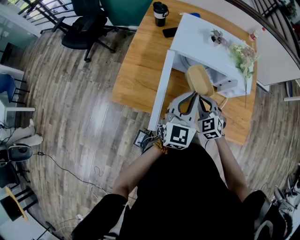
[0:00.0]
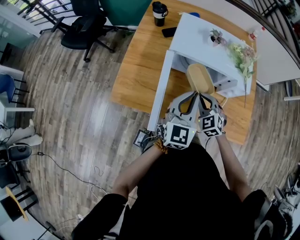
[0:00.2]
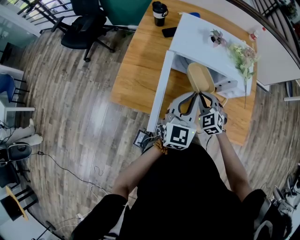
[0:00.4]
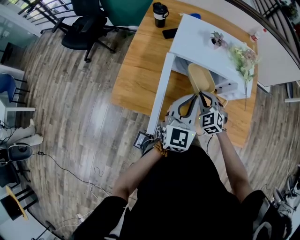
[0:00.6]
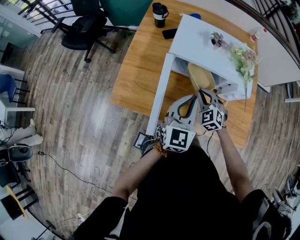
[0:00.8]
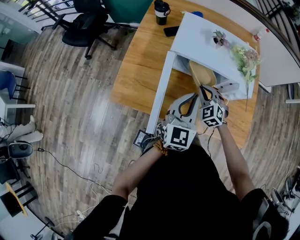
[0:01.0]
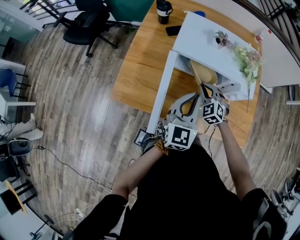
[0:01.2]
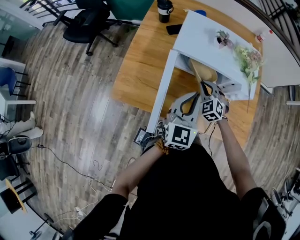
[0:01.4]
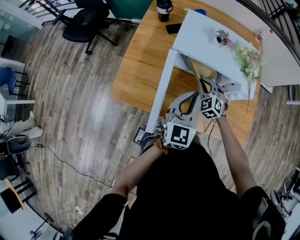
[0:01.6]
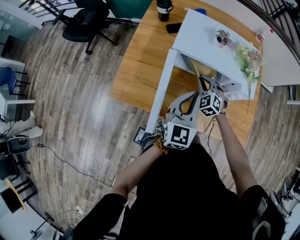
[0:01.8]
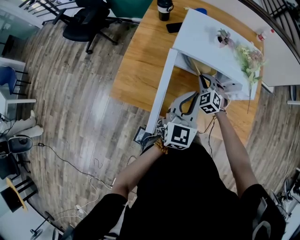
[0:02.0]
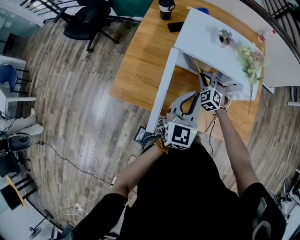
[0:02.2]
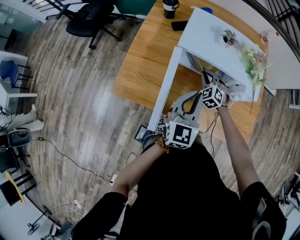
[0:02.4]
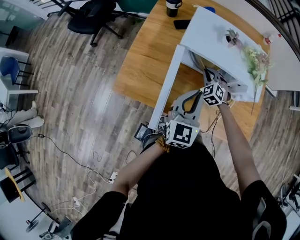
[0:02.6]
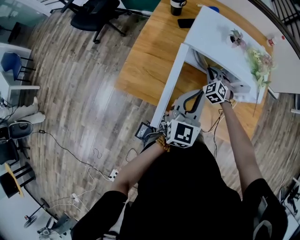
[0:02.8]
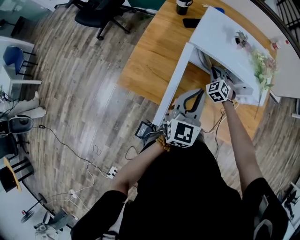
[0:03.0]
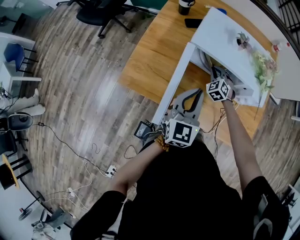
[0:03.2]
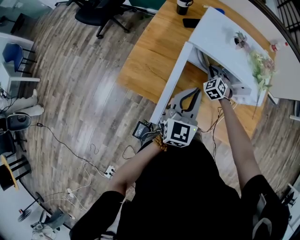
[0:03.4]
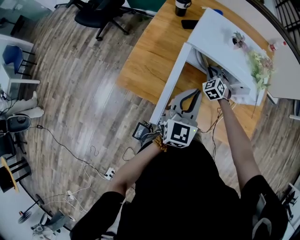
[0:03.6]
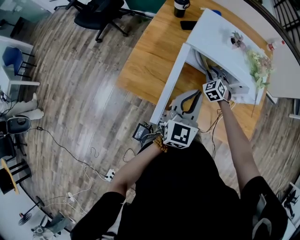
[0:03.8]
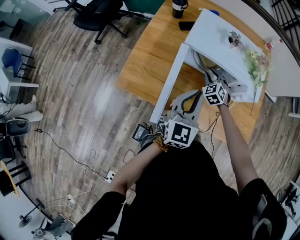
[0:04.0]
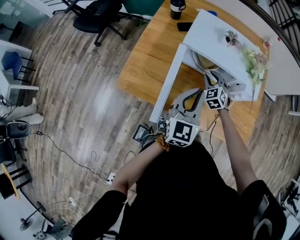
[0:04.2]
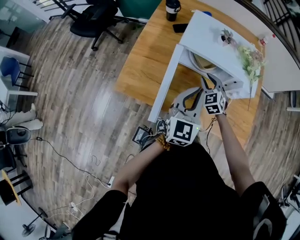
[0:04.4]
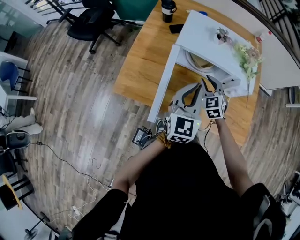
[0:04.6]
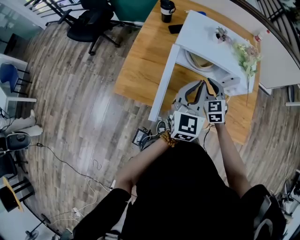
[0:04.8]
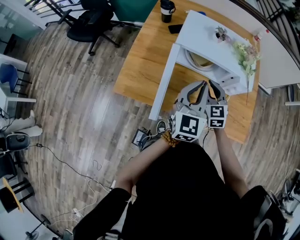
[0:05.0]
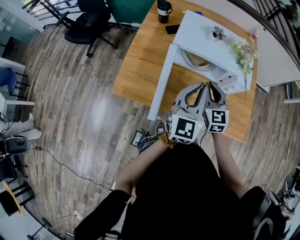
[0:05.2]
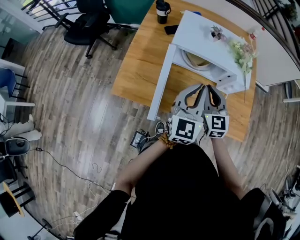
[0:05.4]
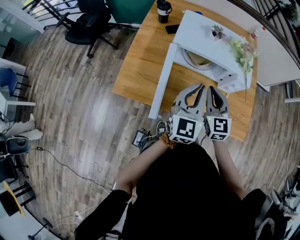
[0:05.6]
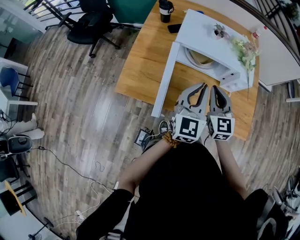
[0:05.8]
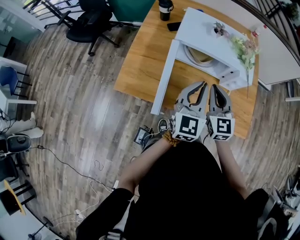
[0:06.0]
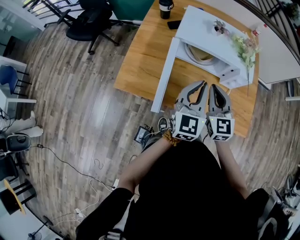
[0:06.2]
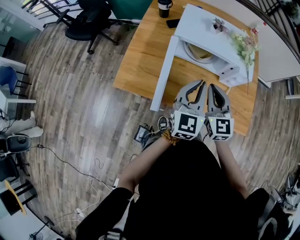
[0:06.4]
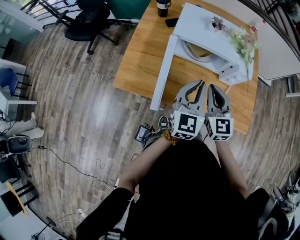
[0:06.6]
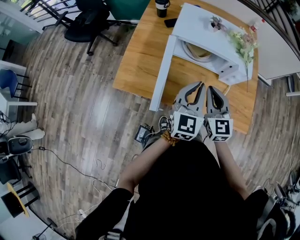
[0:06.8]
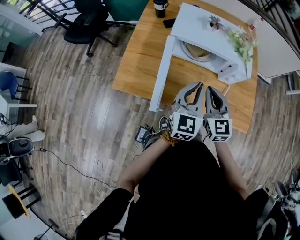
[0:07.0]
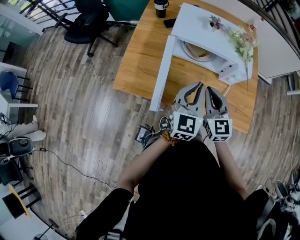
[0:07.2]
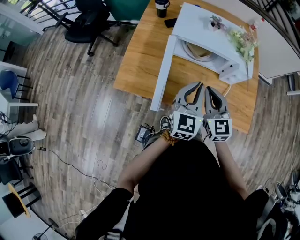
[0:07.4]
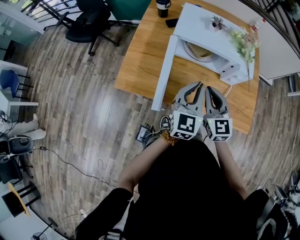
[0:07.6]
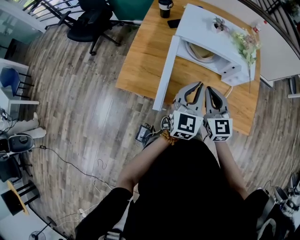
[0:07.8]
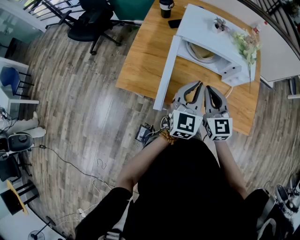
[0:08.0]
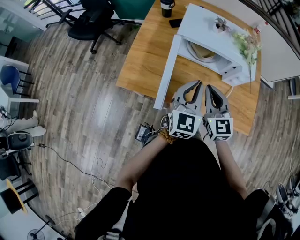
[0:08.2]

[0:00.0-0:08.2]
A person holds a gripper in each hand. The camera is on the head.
0:00.0 to 0:01.6: The right gripper moves forward, about 10 cm.
0:01.6 to 0:03.2: The right gripper moves forward and downward, roughly 10 cm.
0:03.2 to 0:05.0: The right gripper heads upward and backward, covering approximately 20 cm, and swivels roughly 30 degrees, while the left gripper travels upward by about 5 cm.
0:05.0 to 0:06.6: The right gripper is displaced backward and upward by about 10 cm.
0:06.6 to 0:08.2: There are only small adjustments of the grippers.

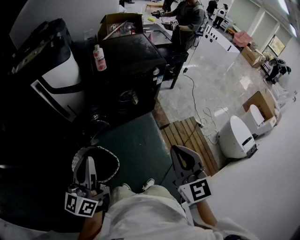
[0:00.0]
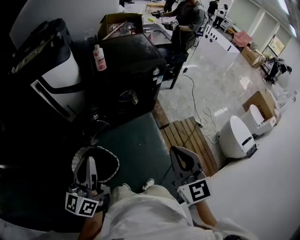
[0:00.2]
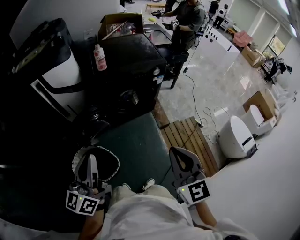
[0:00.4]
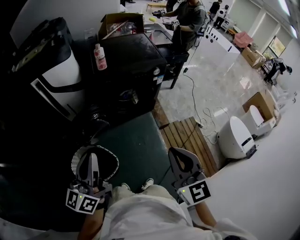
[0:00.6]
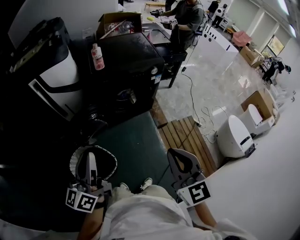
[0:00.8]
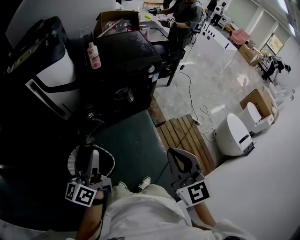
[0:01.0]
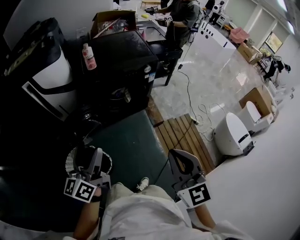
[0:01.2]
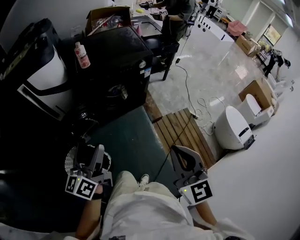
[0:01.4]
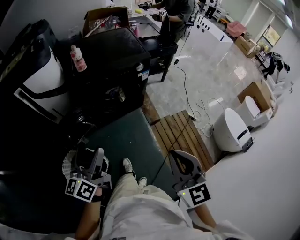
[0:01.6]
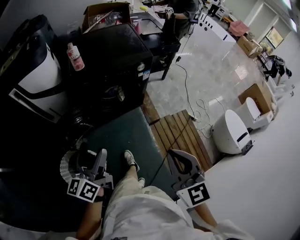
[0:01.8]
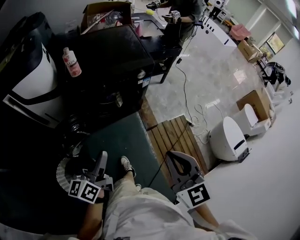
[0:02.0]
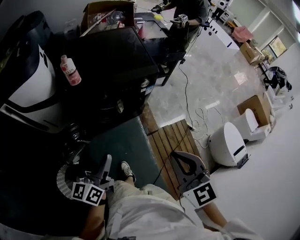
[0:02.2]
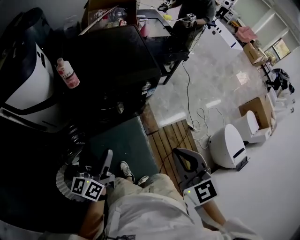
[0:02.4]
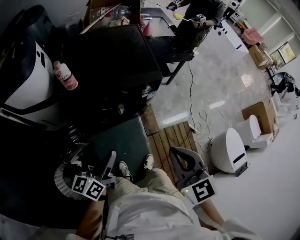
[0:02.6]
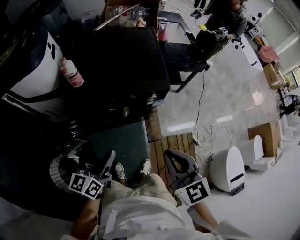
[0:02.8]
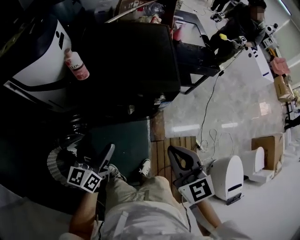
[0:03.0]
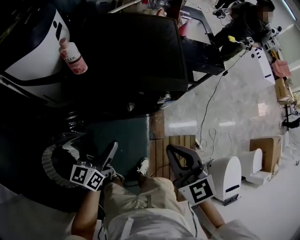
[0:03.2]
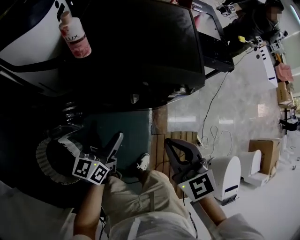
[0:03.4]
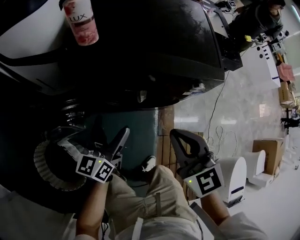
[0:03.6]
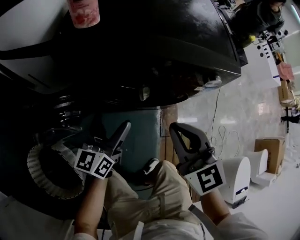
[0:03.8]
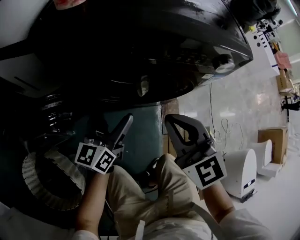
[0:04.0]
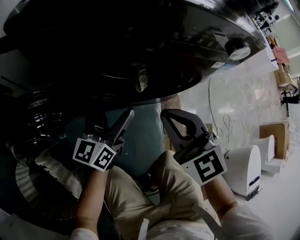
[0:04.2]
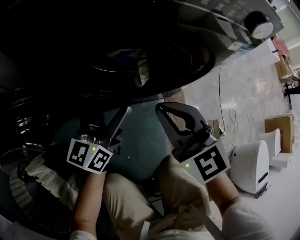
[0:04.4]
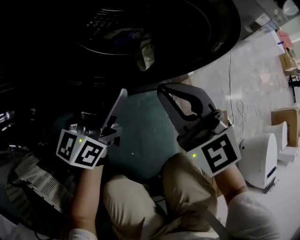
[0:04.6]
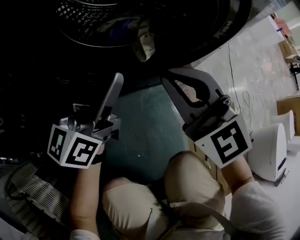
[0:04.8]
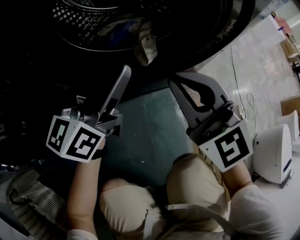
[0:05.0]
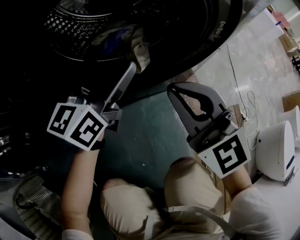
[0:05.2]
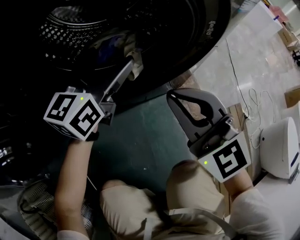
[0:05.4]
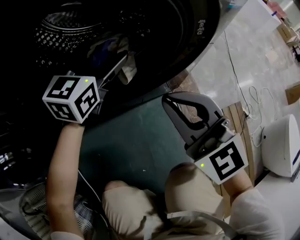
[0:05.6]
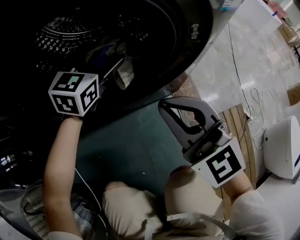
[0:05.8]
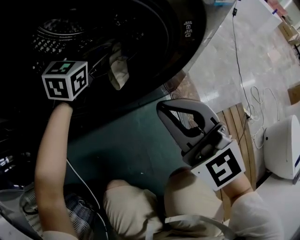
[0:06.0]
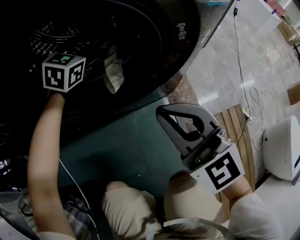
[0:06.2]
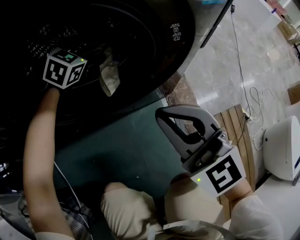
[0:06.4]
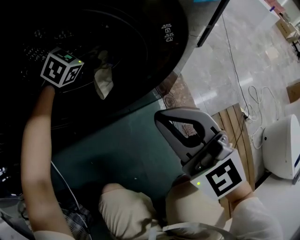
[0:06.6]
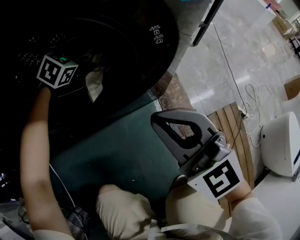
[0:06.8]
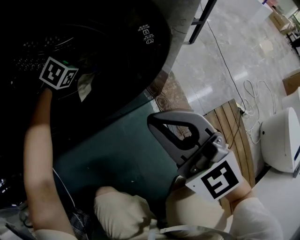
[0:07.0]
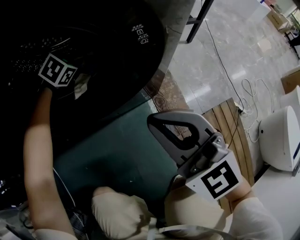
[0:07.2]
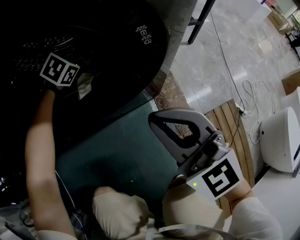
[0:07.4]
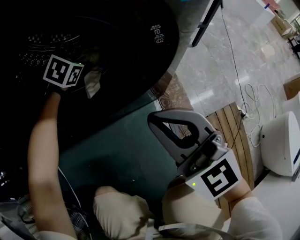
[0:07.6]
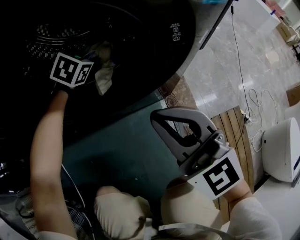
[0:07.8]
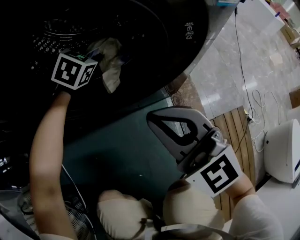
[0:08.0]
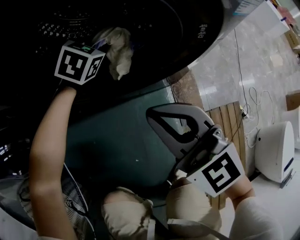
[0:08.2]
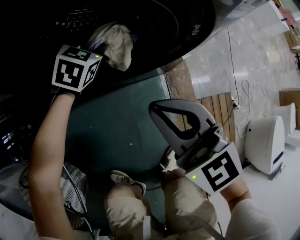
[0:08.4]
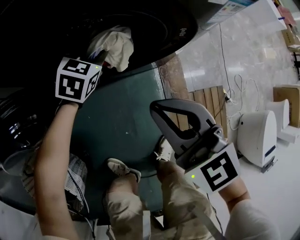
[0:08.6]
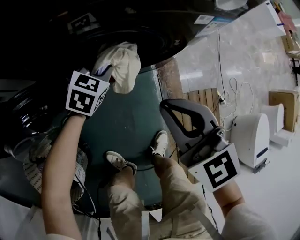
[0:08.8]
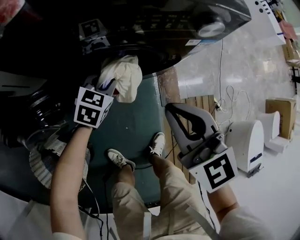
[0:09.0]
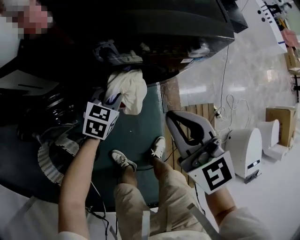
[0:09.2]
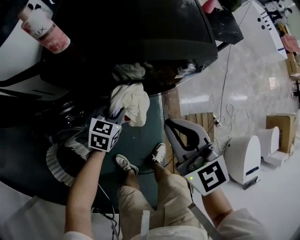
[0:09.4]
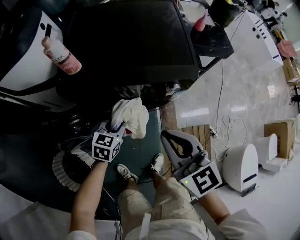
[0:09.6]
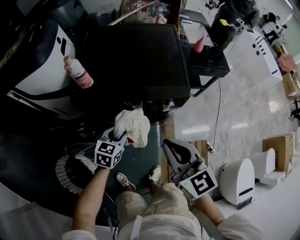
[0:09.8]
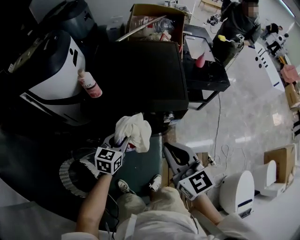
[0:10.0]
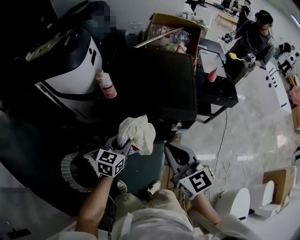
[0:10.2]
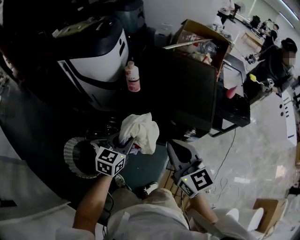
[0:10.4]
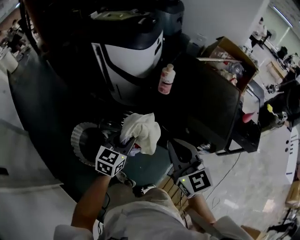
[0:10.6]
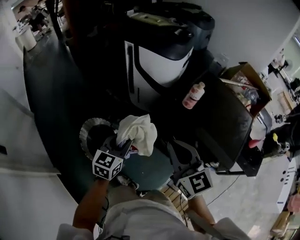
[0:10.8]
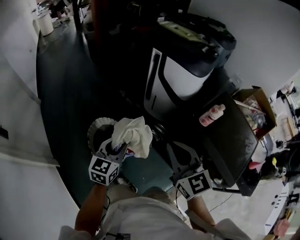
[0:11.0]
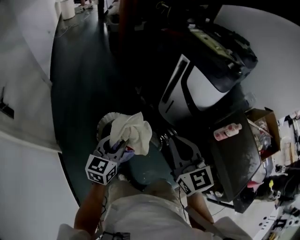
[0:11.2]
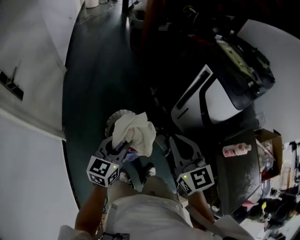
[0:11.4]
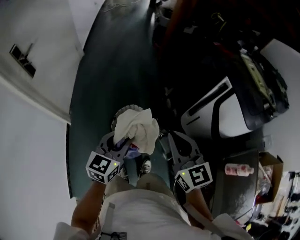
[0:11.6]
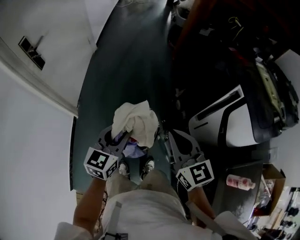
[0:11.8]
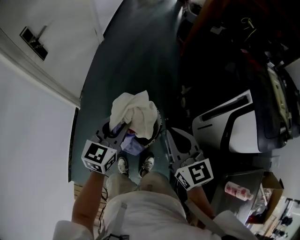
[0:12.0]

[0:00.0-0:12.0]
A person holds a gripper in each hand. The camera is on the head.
0:00.0 to 0:01.6: The left gripper shifts some 15 cm to the right, forward and downward, and opens up. The right gripper is displaced to the right by some 10 cm.
0:01.6 to 0:03.0: The two grippers go about 35 cm forward. The right gripper swivels roughly 30 degrees.
0:03.0 to 0:04.4: Both grippers travel together downward, roughly 40 cm.
0:04.4 to 0:06.0: The left gripper moves forward, to the right and downward, approximately 25 cm, and rotates about 50 degrees; the right gripper heads downward and to the right, covering some 15 cm.
0:06.0 to 0:07.6: The left gripper goes some 10 cm downward, tips its fingers downward by approximately 30 degrees, and closes.
0:07.6 to 0:09.0: The right gripper heads upward, covering some 25 cm. Meanwhile the left gripper heads backward and upward, covering approximately 30 cm, and changes its angle by roughly 20 degrees.
0:09.0 to 0:10.4: Both grippers move upward, about 40 cm. The right gripper turns by some 20 degrees. Meanwhile the left gripper changes its angle by approximately 40 degrees.
0:10.4 to 0:12.0: The pair of grippers is taken roughly 60 cm. The left gripper turns by roughly 80 degrees. Meanwhile the right gripper changes its angle by approximately 80 degrees.

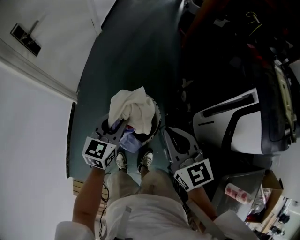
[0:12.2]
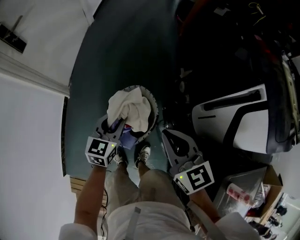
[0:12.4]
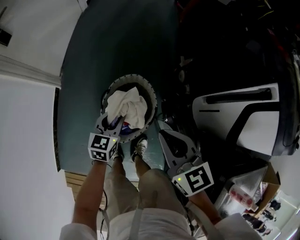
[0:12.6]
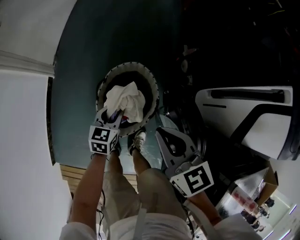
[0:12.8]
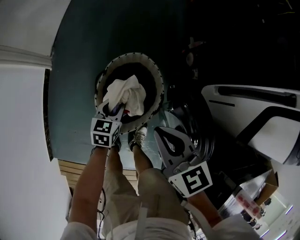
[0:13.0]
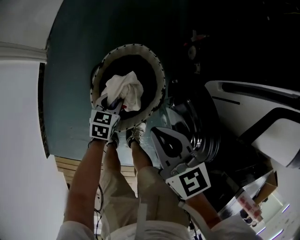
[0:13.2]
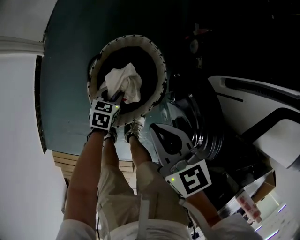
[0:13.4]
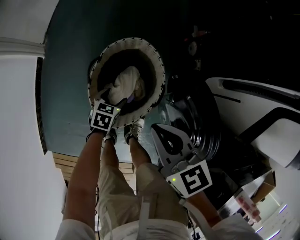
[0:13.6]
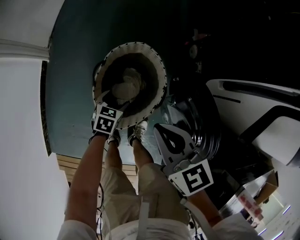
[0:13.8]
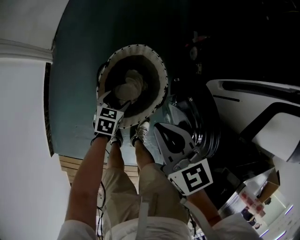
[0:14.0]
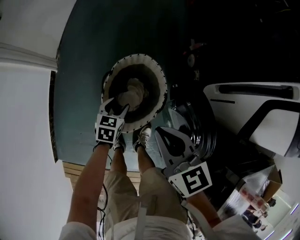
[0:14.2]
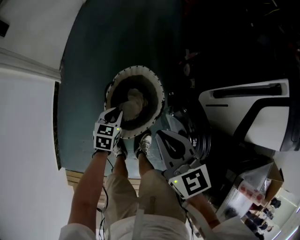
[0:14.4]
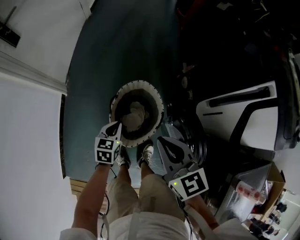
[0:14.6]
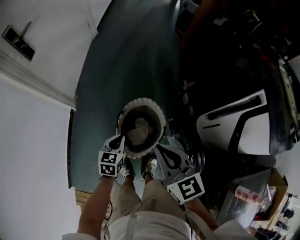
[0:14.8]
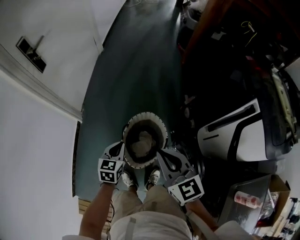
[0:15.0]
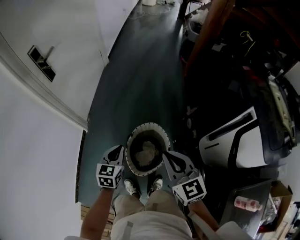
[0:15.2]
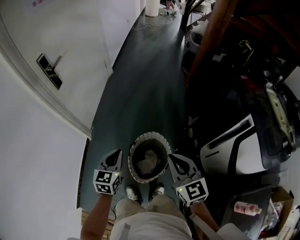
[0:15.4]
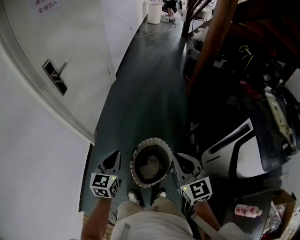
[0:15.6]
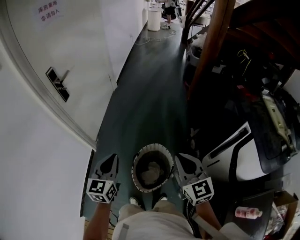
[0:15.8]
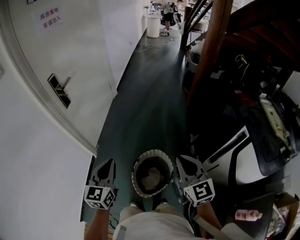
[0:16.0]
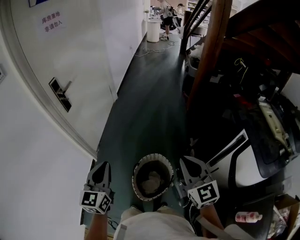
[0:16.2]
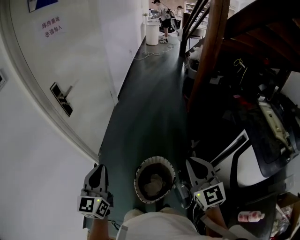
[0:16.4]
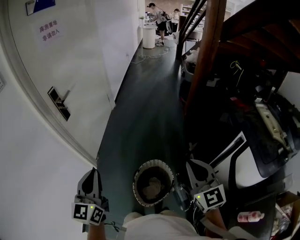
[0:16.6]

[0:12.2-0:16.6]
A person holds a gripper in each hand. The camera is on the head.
0:12.2 to 0:13.6: The left gripper is displaced downward by some 50 cm, tilts its fingers some 40 degrees downward, and opens; the right gripper travels downward by some 30 cm, and rotates some 20 degrees.
0:13.6 to 0:15.2: Both grippers move upward, about 40 cm. The right gripper turns by about 20 degrees; the left gripper rotates approximately 30 degrees, and closes its fingers.
0:15.2 to 0:16.6: The left gripper shifts approximately 30 cm upward, and tilts its fingers about 30 degrees upward, while the right gripper shifts approximately 15 cm upward and to the right.
